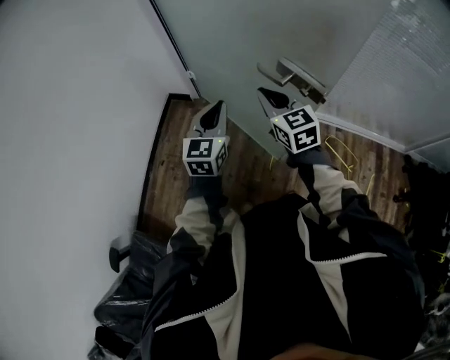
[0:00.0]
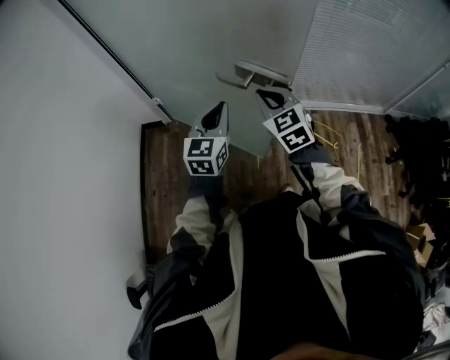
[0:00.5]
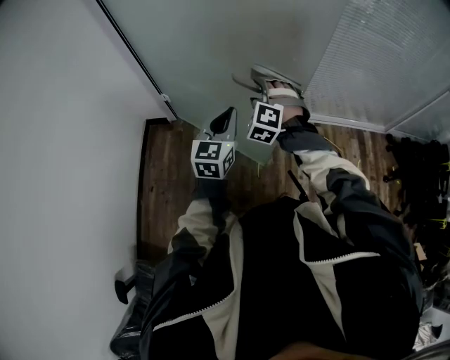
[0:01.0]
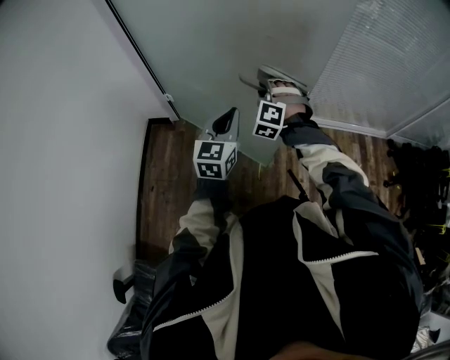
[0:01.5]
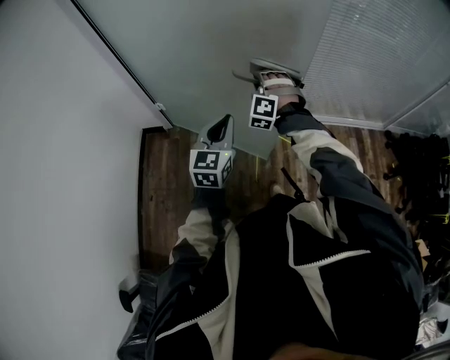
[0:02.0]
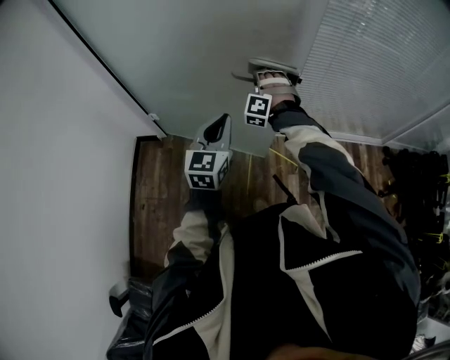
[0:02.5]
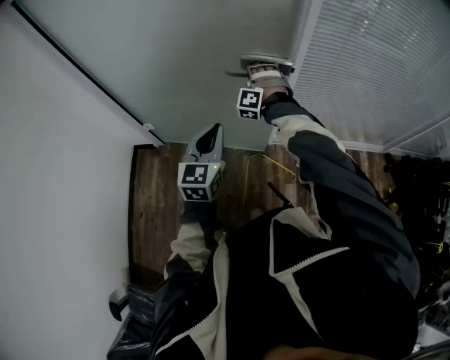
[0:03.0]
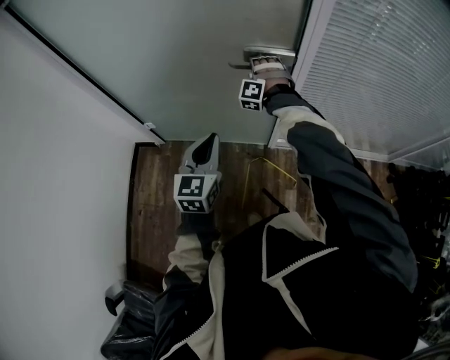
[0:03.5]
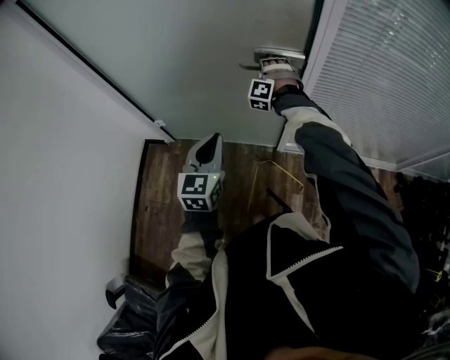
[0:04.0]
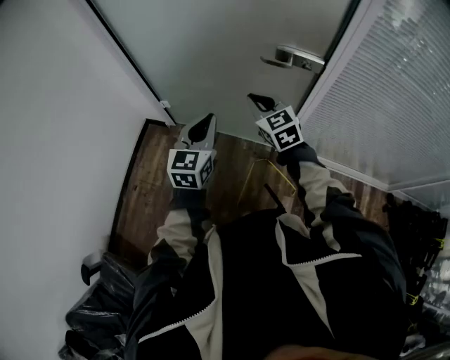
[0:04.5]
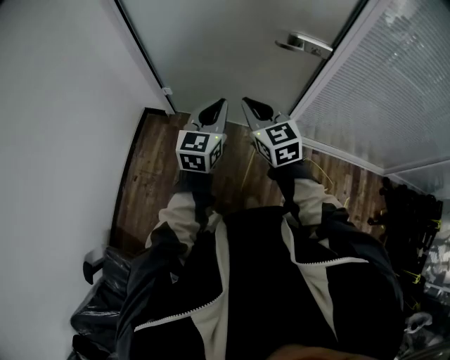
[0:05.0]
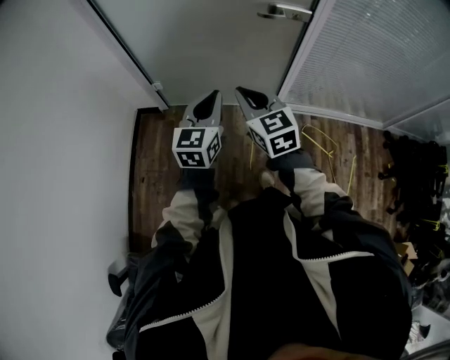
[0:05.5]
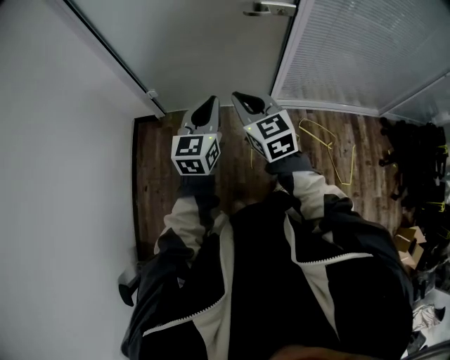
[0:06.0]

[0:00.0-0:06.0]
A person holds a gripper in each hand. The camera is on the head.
0:00.0 to 0:02.0: The right gripper ends up some 20 cm from where it was, rotates around the line of its fingers by approximately 70 degrees, counterclockwise from behind, and opens up; the left gripper shifts by roughly 10 cm.
0:02.0 to 0:04.0: The left gripper is displaced forward by about 20 cm. Meanwhile the right gripper goes approximately 30 cm forward.
0:04.0 to 0:06.0: The left gripper changes place by about 20 cm. Meanwhile the right gripper changes place by roughly 50 cm, rolls clockwise, seen from behind, by roughly 80 degrees, and closes.

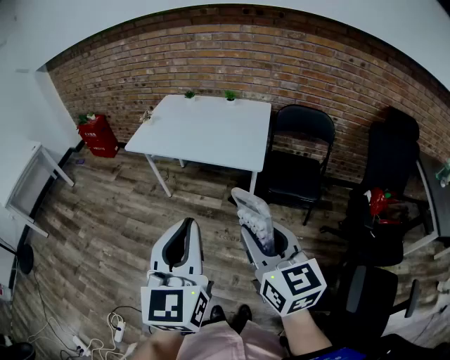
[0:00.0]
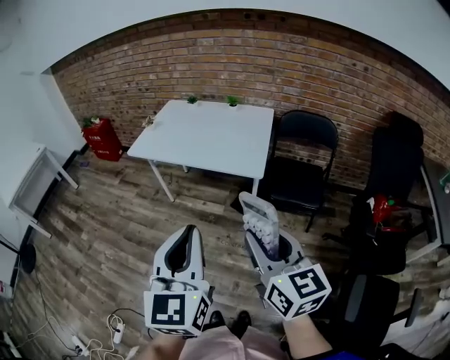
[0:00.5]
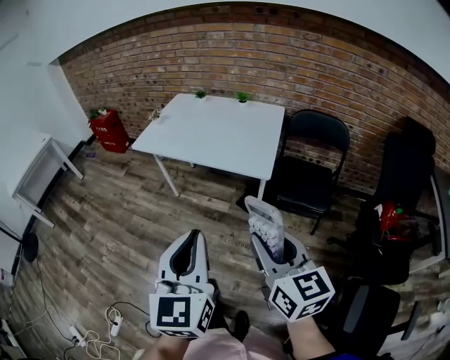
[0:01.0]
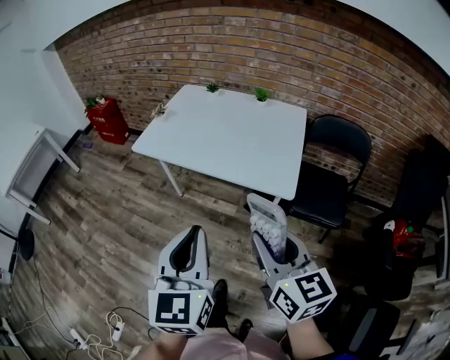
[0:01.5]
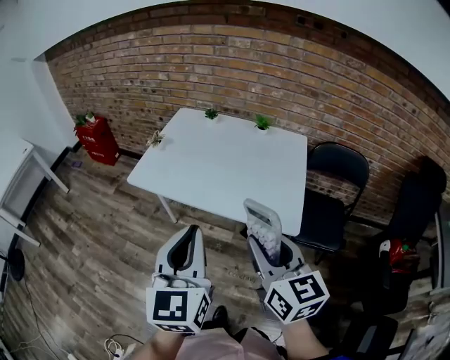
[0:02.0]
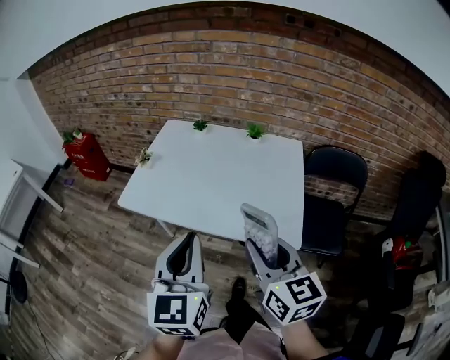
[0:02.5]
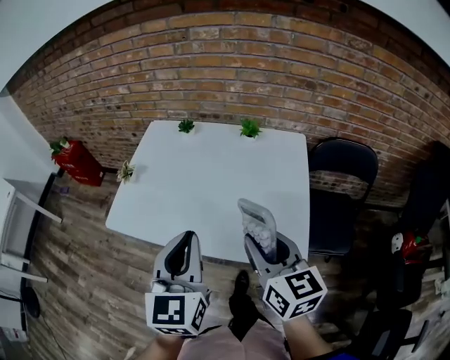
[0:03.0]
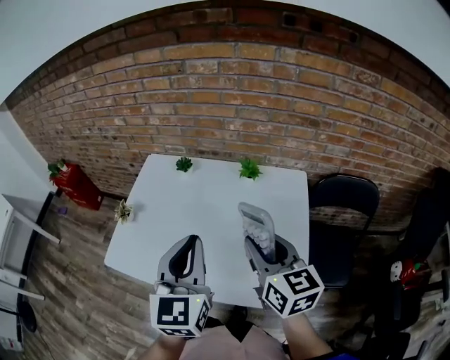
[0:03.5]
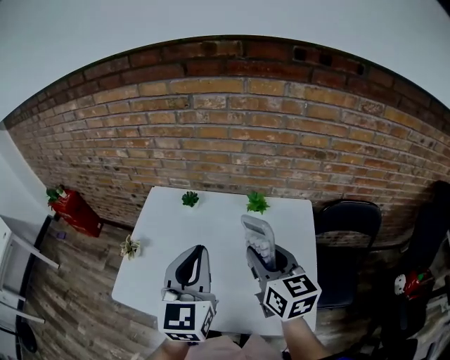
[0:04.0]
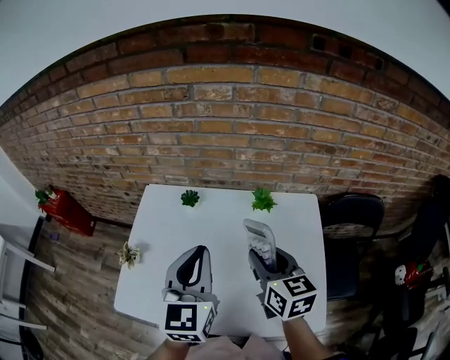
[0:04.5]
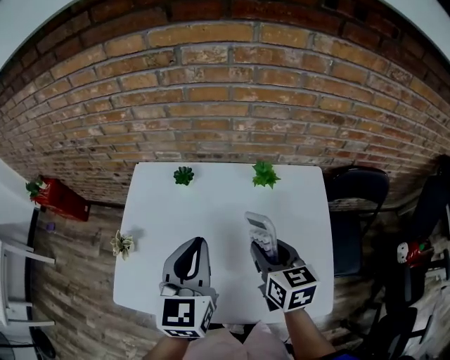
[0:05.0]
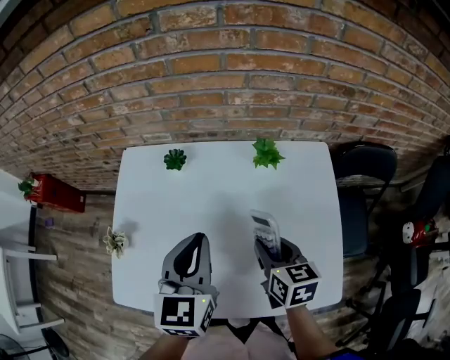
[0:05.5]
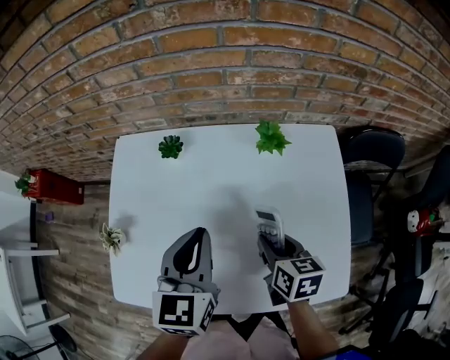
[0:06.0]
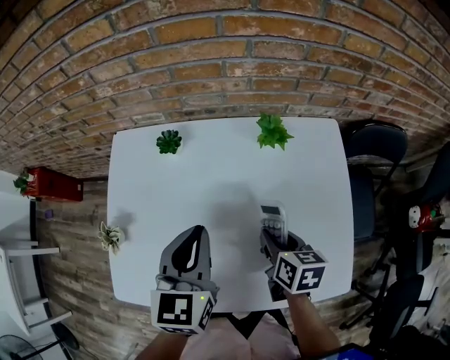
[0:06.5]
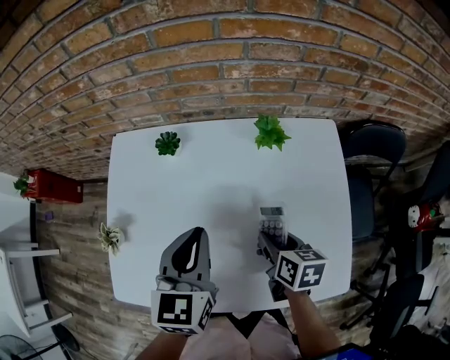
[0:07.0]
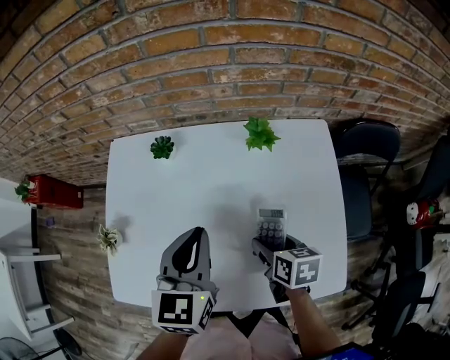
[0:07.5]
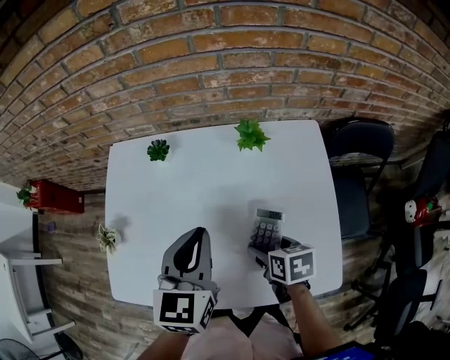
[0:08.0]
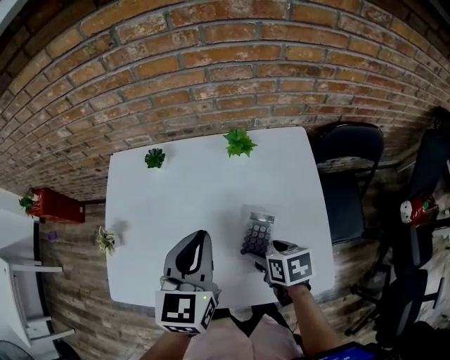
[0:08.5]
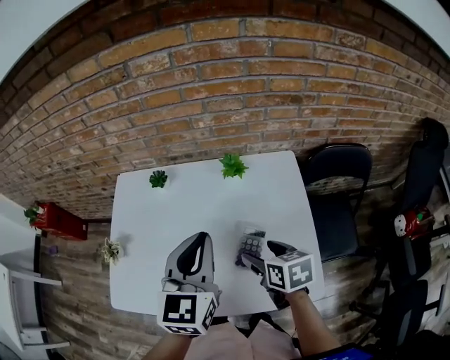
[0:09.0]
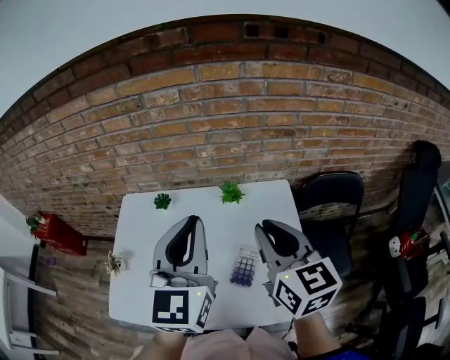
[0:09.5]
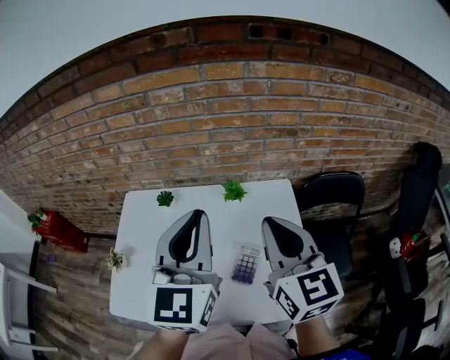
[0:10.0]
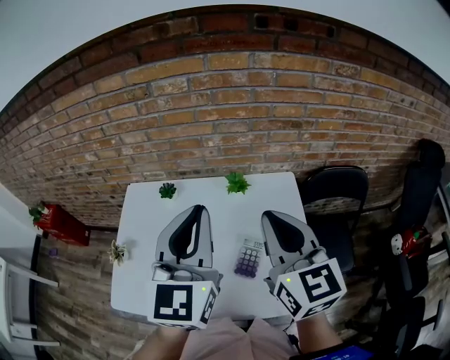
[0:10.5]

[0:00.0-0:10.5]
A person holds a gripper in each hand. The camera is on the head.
0:00.0 to 0:02.0: Both grippers move forward, approximately 30 cm.
0:02.0 to 0:04.0: The two grippers go some 40 cm forward.
0:04.0 to 0:06.5: The right gripper travels downward by about 25 cm, and tips its fingers downward by roughly 30 degrees. Meanwhile the left gripper is displaced downward and forward by approximately 20 cm, and turns by approximately 20 degrees.
0:06.5 to 0:08.5: The left gripper goes roughly 5 cm to the right, while the right gripper moves backward, roughly 5 cm, and opens up.
0:08.5 to 0:10.5: The left gripper moves upward, some 20 cm, and rotates approximately 20 degrees. Meanwhile the right gripper goes about 35 cm upward, angles its fingers upward, by some 50 degrees, and closes up.

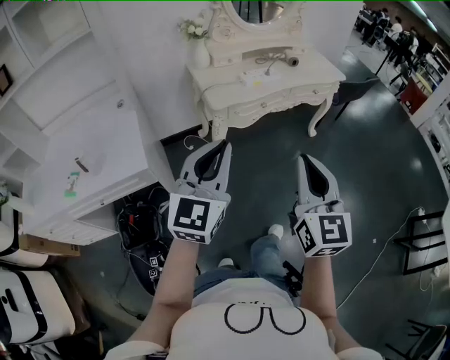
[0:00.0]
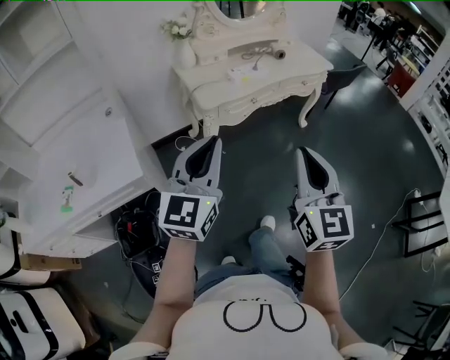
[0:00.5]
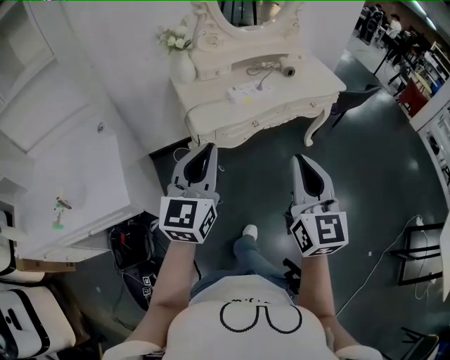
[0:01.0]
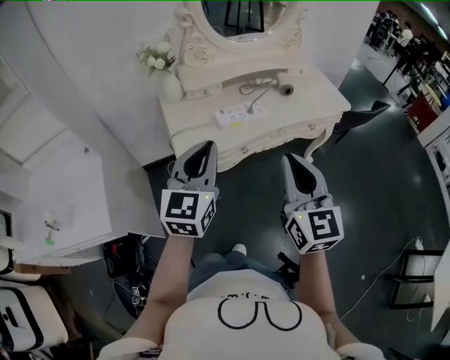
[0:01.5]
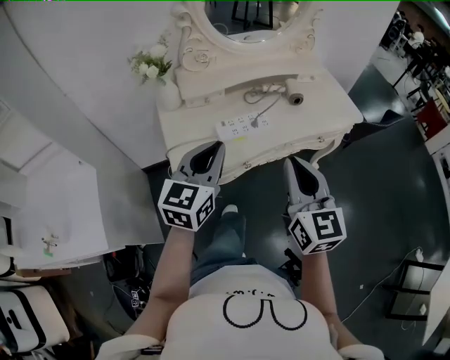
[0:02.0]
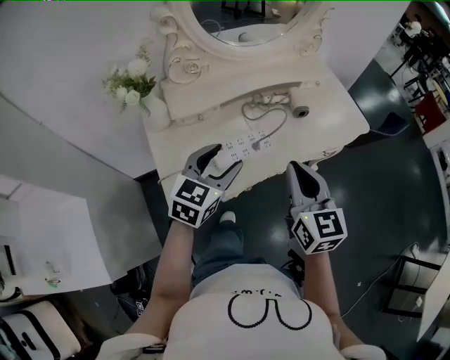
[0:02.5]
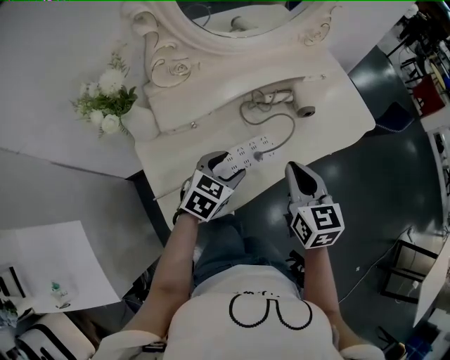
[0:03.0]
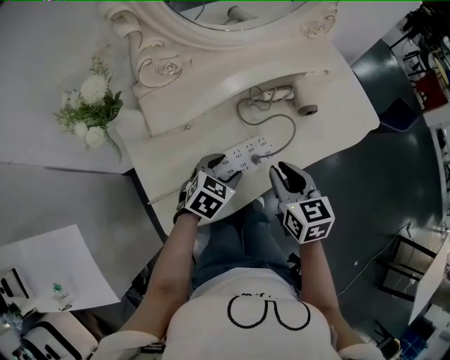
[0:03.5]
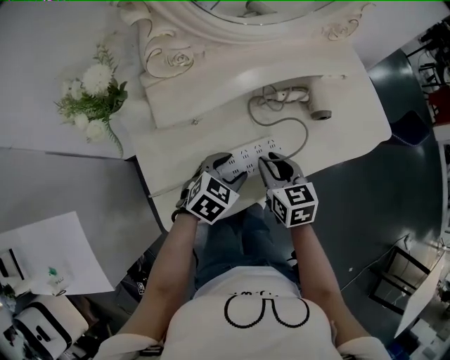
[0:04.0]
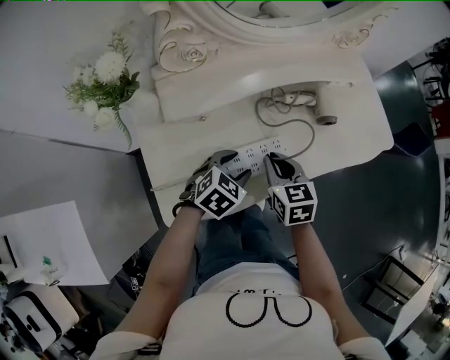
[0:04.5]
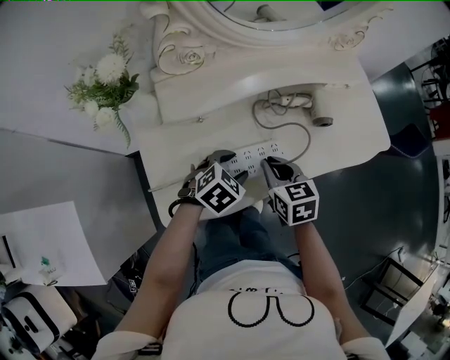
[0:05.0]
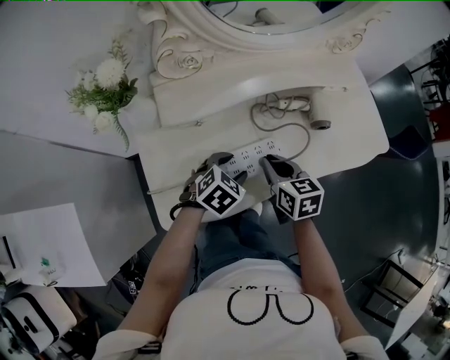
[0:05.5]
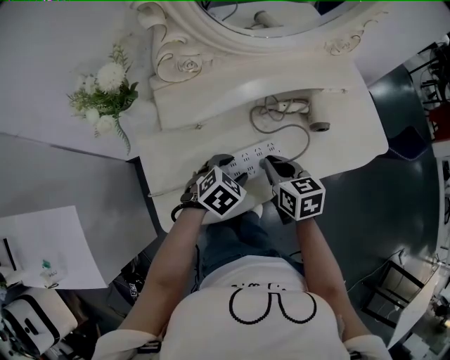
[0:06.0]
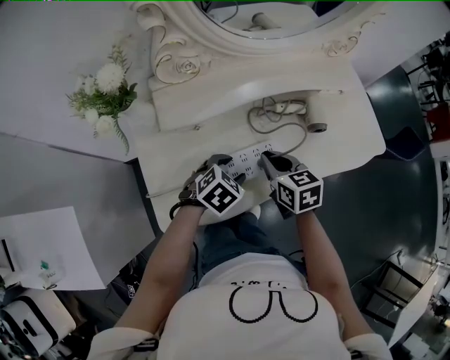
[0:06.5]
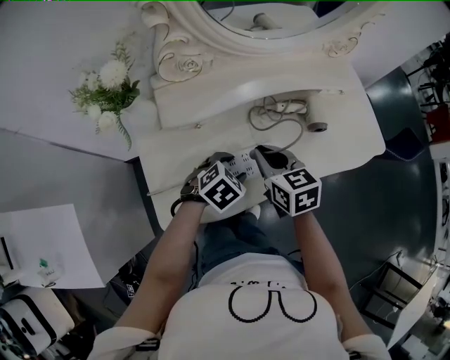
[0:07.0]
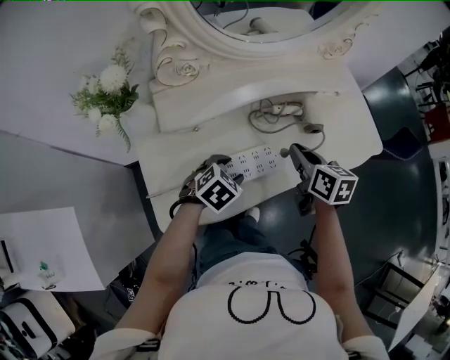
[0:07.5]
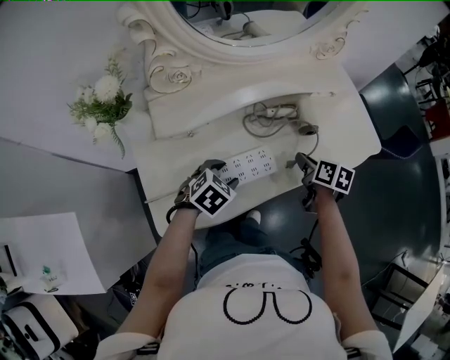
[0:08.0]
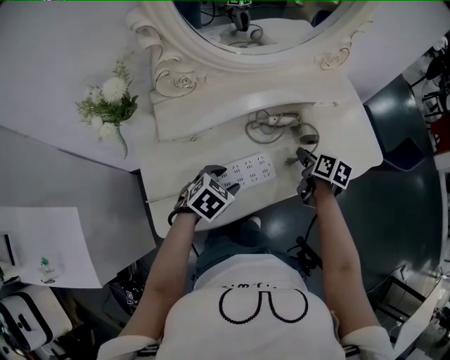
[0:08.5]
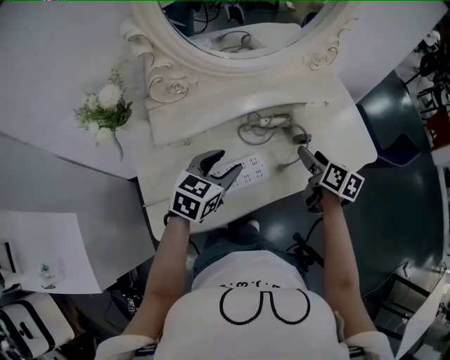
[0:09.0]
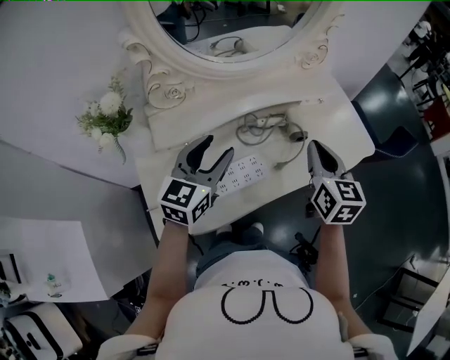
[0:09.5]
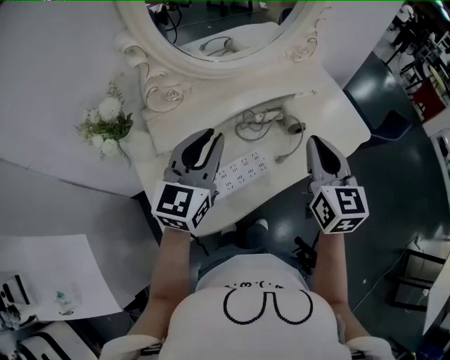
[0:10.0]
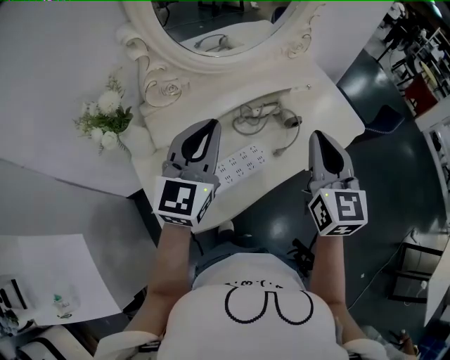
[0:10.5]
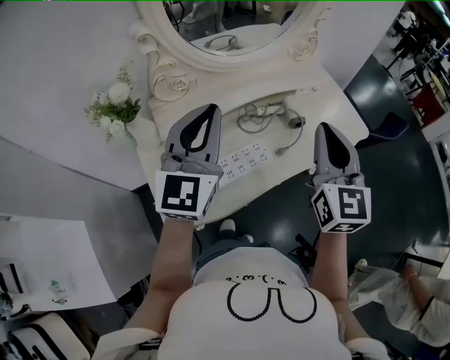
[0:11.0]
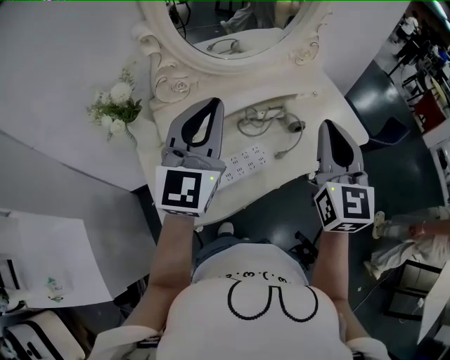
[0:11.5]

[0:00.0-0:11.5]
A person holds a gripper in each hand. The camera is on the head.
0:00.0 to 0:02.0: Both grippers are carried forward, roughly 50 cm.
0:02.0 to 0:04.0: The left gripper heads downward and forward, covering approximately 35 cm, points its fingers some 40 degrees further downward, and opens. Meanwhile the right gripper shifts roughly 35 cm forward and downward, tilts its fingers approximately 30 degrees downward, and opens its fingers.
0:04.0 to 0:06.0: The grippers move only a little.
0:06.0 to 0:07.5: The right gripper heads to the right and upward, covering some 10 cm.
0:07.5 to 0:09.5: The right gripper shifts approximately 15 cm upward and to the right, turns by about 30 degrees, and opens and closes again; the left gripper goes roughly 20 cm upward, and angles its fingers upward, by roughly 50 degrees.
0:09.5 to 0:11.5: The left gripper goes about 15 cm upward, turns by some 30 degrees, and closes. The right gripper shifts approximately 15 cm upward and backward, and turns by some 30 degrees.
